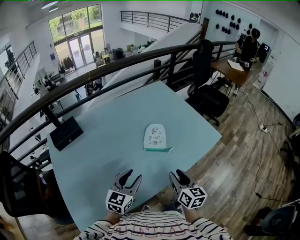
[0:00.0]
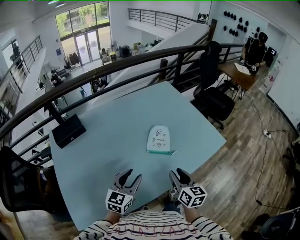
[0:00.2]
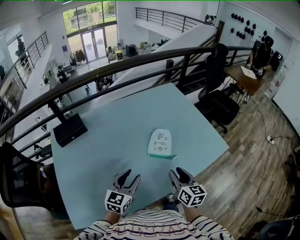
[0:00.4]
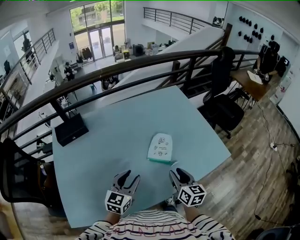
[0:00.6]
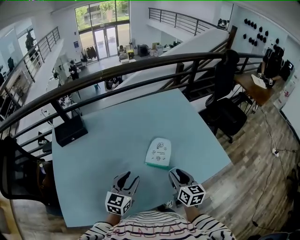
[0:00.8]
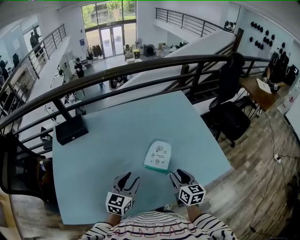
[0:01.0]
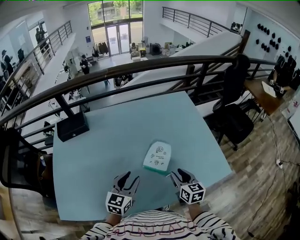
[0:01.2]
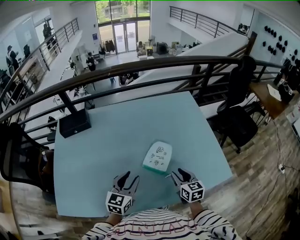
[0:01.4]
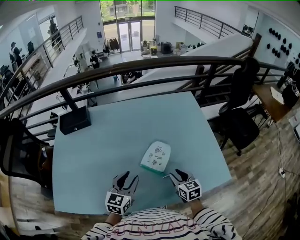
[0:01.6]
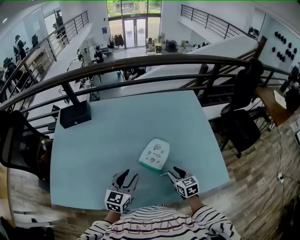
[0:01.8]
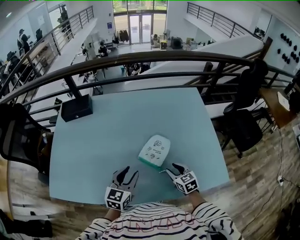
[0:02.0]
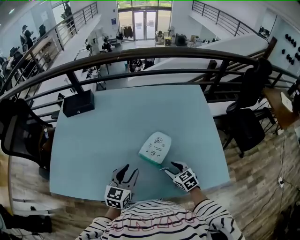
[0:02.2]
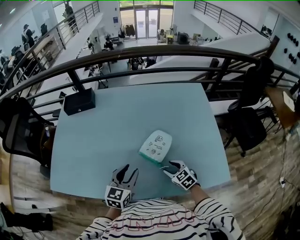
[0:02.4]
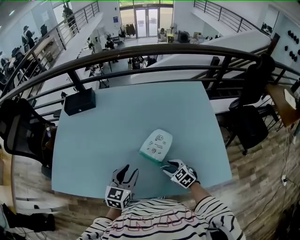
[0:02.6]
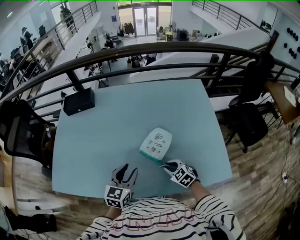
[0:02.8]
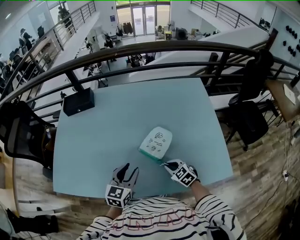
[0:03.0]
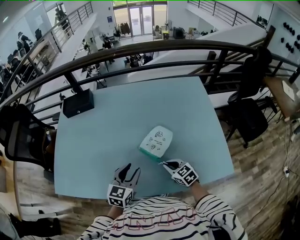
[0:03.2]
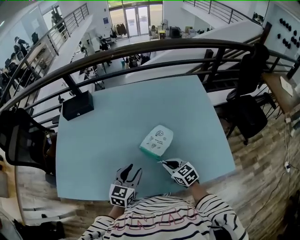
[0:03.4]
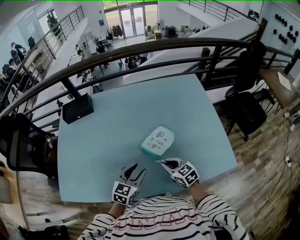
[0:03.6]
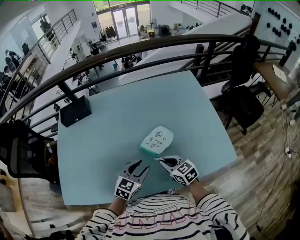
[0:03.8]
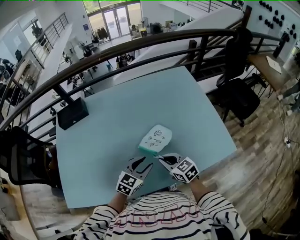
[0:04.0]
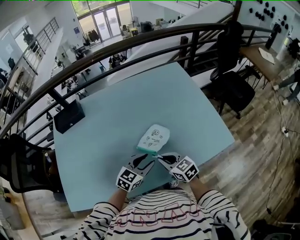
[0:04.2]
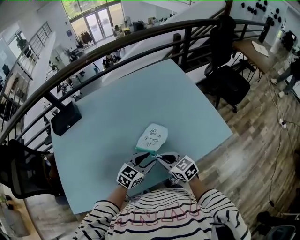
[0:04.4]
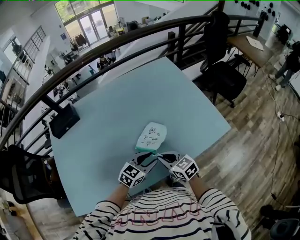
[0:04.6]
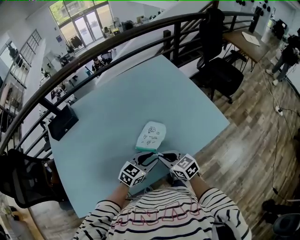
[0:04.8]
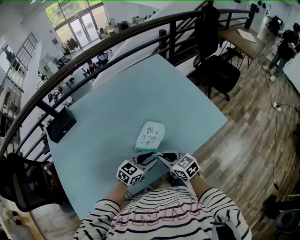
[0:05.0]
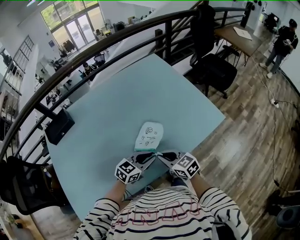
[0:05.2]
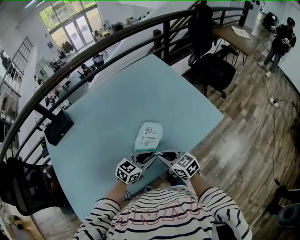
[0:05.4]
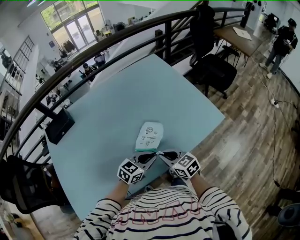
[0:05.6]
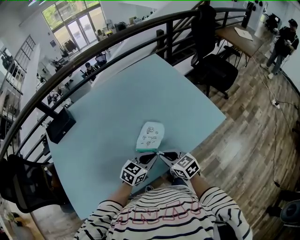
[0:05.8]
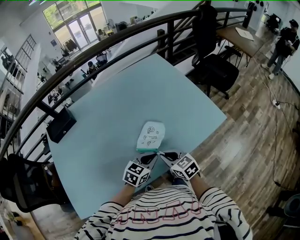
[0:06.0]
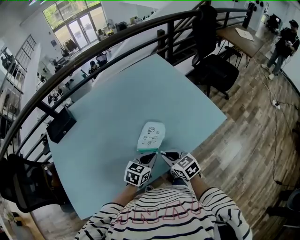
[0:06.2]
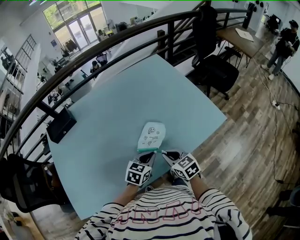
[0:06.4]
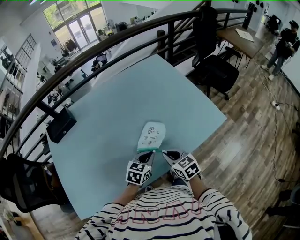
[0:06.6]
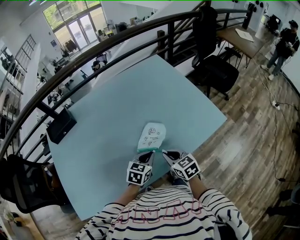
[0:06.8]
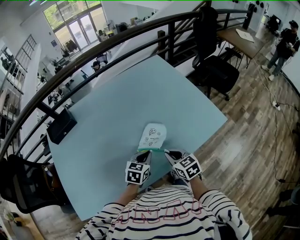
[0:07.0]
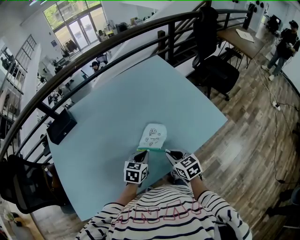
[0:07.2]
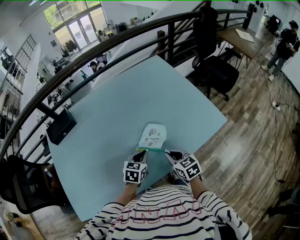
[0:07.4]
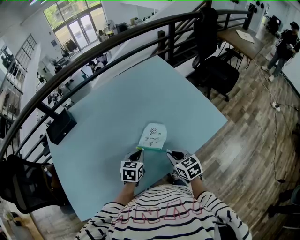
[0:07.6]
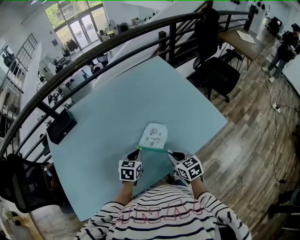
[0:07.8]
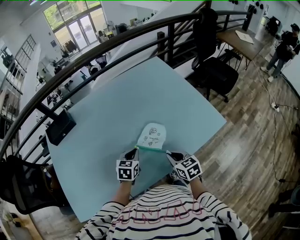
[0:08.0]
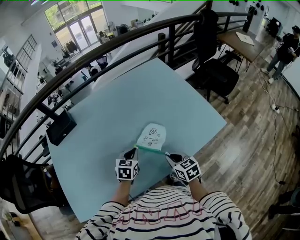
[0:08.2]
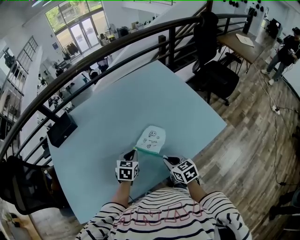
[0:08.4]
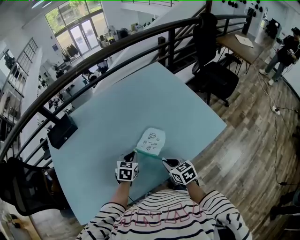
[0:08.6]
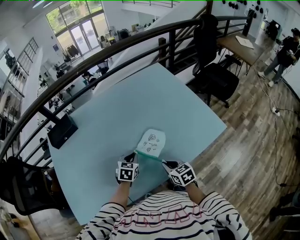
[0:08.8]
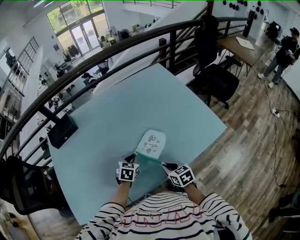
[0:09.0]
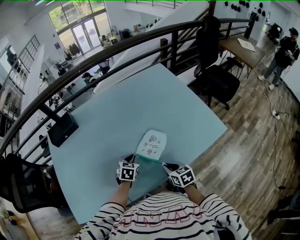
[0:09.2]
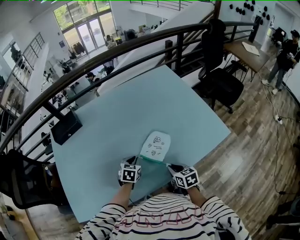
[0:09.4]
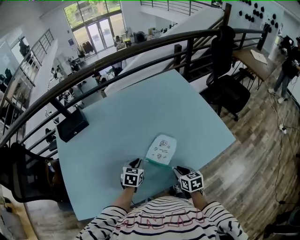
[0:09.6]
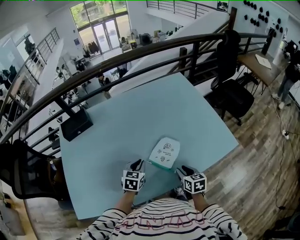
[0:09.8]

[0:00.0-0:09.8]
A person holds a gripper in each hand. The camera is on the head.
0:00.0 to 0:01.4: The right gripper heads forward, covering approximately 20 cm, and changes its angle by some 30 degrees; the left gripper goes about 15 cm forward and to the right, and rotates approximately 30 degrees.
0:01.4 to 0:02.8: The left gripper moves roughly 5 cm. Meanwhile the right gripper shifts approximately 10 cm downward, and swivels about 50 degrees.
0:02.8 to 0:04.2: The right gripper moves upward and to the left, roughly 10 cm, and changes its angle by roughly 30 degrees. The left gripper ends up roughly 5 cm from where it was, and rotates some 40 degrees.
0:04.2 to 0:05.6: The right gripper travels backward by roughly 5 cm. Meanwhile the left gripper moves some 5 cm, and closes up.
0:05.6 to 0:07.0: The left gripper changes place by some 5 cm, and rotates approximately 30 degrees.
0:07.0 to 0:08.4: The left gripper travels to the left and forward by about 10 cm.
0:08.4 to 0:09.8: The right gripper opens its fingers.

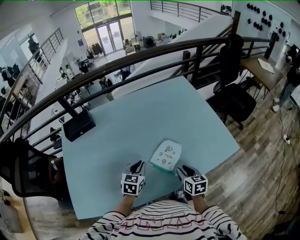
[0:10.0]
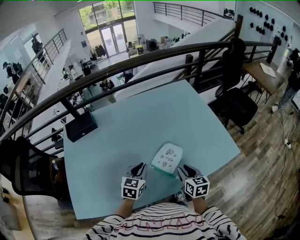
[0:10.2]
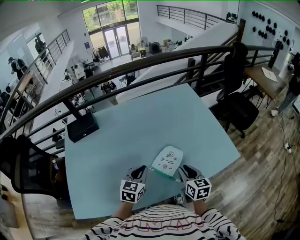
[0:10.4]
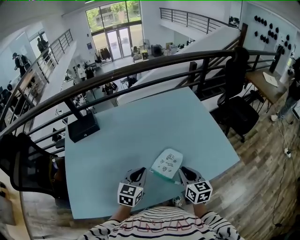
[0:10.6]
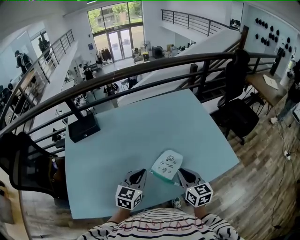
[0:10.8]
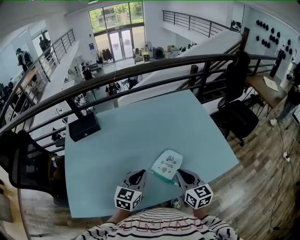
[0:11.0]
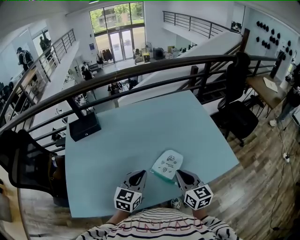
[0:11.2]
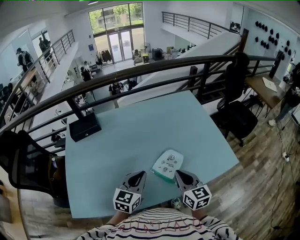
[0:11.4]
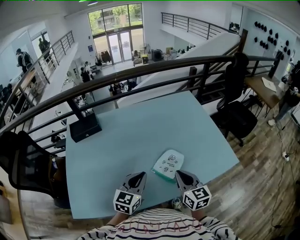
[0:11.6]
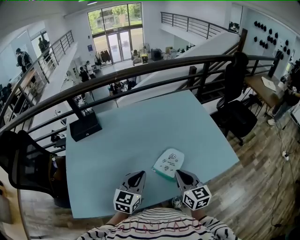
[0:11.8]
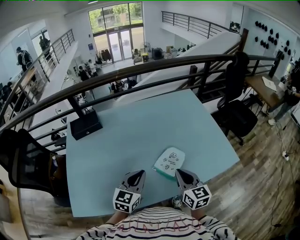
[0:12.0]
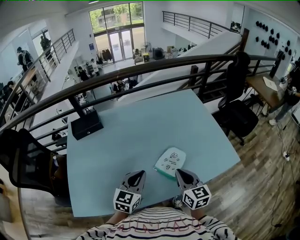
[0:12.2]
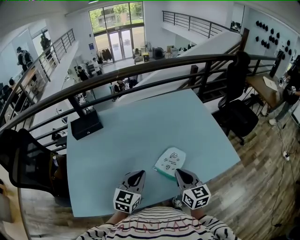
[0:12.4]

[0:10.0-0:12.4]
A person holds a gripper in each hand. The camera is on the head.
0:10.0 to 0:11.2: Both grippers move upward, roughly 10 cm. The right gripper rotates roughly 20 degrees, and closes.
0:11.2 to 0:12.4: The grippers make only small movements.

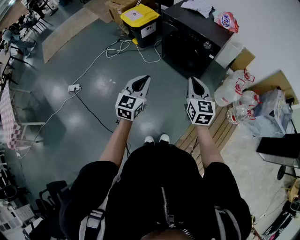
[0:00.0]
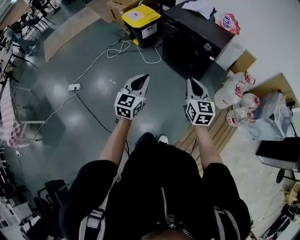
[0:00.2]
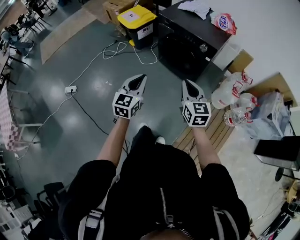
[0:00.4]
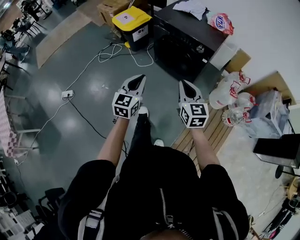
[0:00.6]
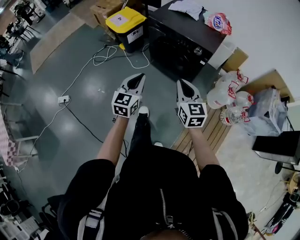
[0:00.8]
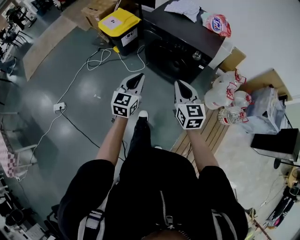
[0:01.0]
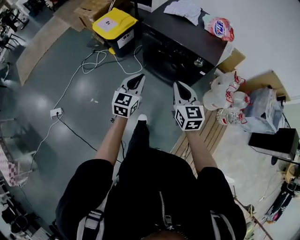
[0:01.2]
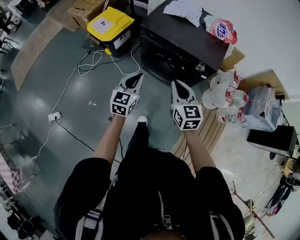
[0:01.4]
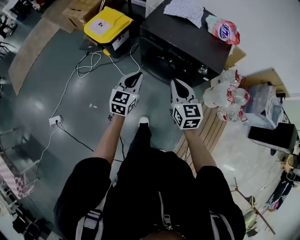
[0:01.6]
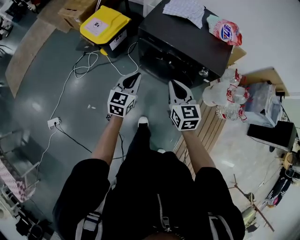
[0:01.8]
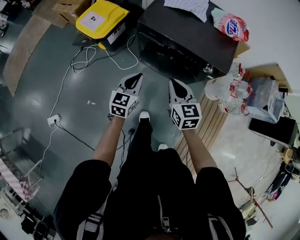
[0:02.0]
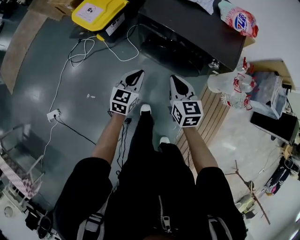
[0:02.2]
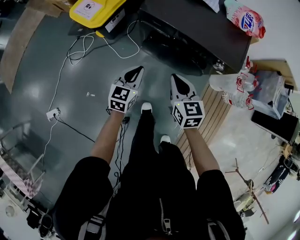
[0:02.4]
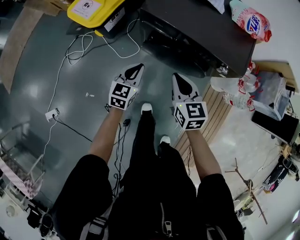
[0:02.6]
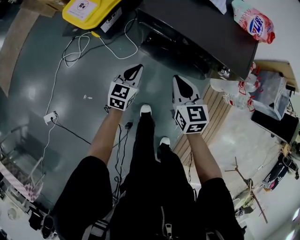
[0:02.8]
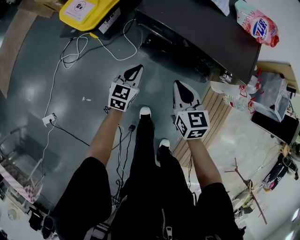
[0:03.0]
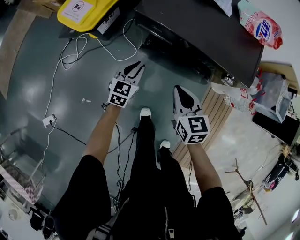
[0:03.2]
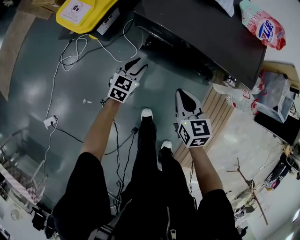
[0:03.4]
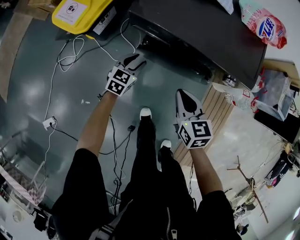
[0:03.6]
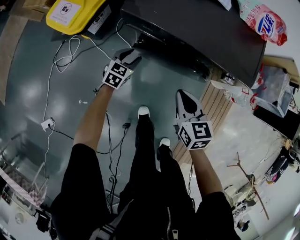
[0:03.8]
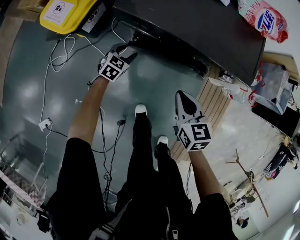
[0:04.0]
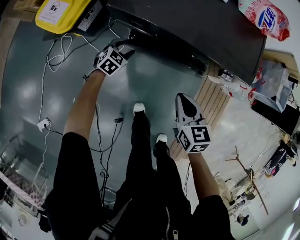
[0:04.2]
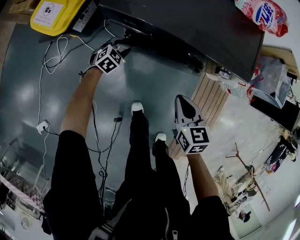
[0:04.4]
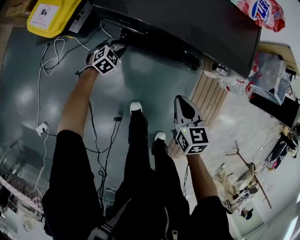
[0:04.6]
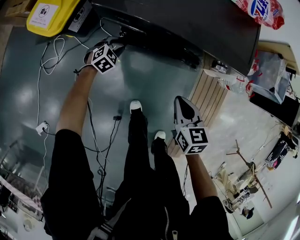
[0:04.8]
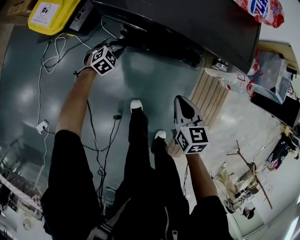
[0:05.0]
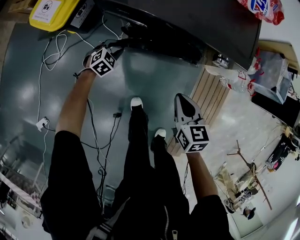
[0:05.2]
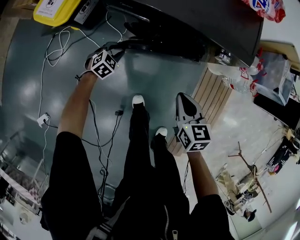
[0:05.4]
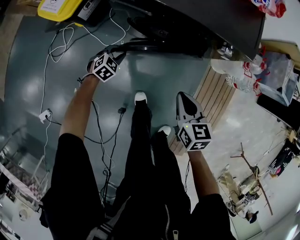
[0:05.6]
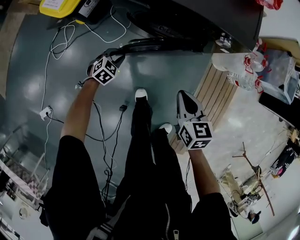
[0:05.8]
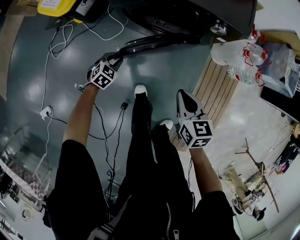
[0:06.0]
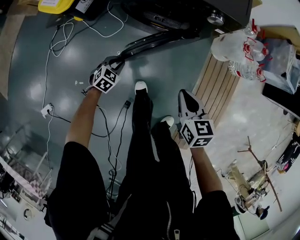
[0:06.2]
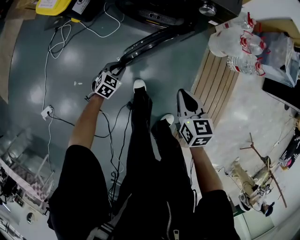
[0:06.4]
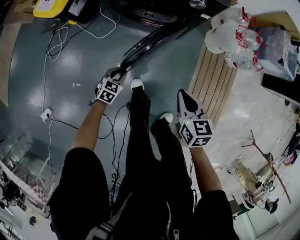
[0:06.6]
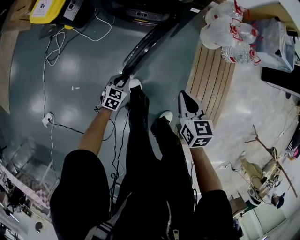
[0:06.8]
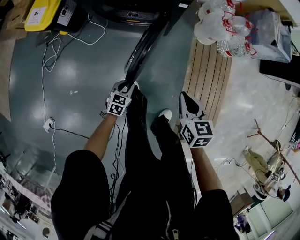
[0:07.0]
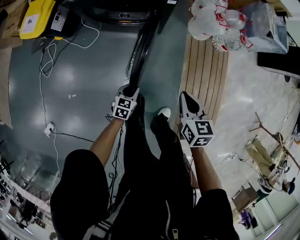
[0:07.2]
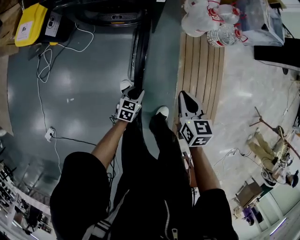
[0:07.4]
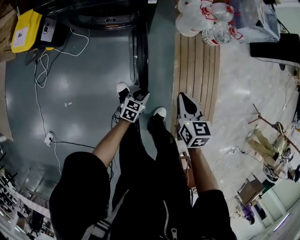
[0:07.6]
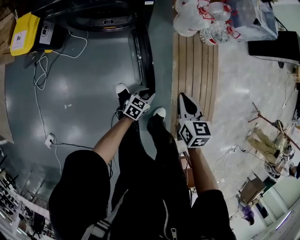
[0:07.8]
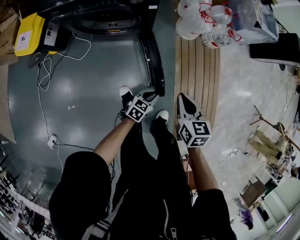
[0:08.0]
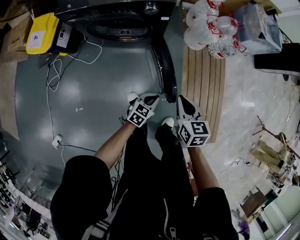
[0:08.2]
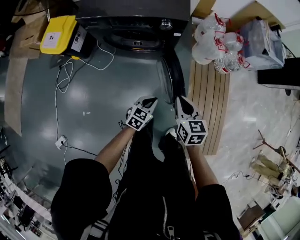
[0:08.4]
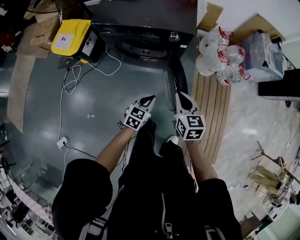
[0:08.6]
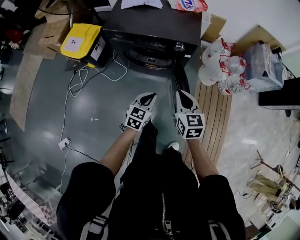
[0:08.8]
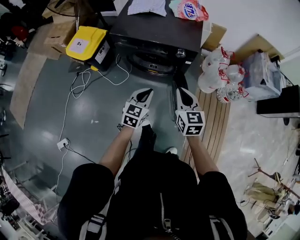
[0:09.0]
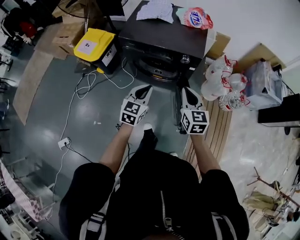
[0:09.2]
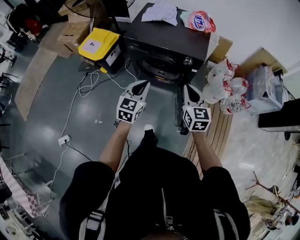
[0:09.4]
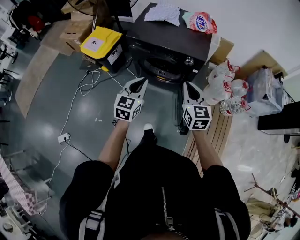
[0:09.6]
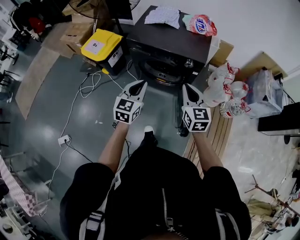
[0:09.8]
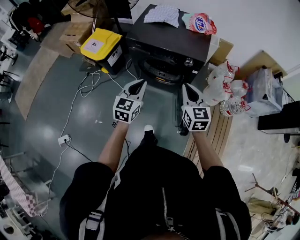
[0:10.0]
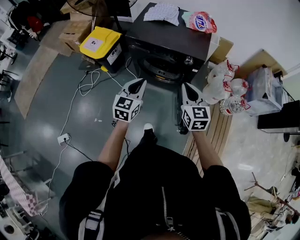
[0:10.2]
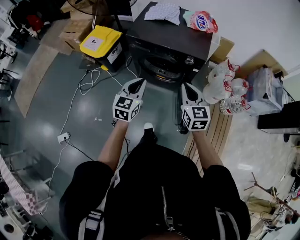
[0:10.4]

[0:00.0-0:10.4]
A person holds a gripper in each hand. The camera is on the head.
0:00.0 to 0:01.4: Both grippers travel together forward, about 35 cm.
0:01.4 to 0:03.0: Both grippers move downward and forward, about 25 cm.
0:03.0 to 0:04.4: The right gripper heads to the right and downward, covering approximately 10 cm; the left gripper travels downward and forward by about 20 cm, swivels approximately 40 degrees, and opens its fingers.
0:04.4 to 0:06.0: The right gripper travels backward and to the right by about 15 cm, while the left gripper travels backward by some 20 cm, and closes its fingers.
0:06.0 to 0:07.4: The right gripper shifts some 25 cm to the right and backward; the left gripper moves to the right and backward, roughly 40 cm, and swivels roughly 20 degrees.
0:07.4 to 0:09.0: The left gripper is displaced upward by about 35 cm, rotates roughly 30 degrees, and closes up. The right gripper heads upward, covering some 20 cm, and swivels roughly 30 degrees.
0:09.0 to 0:10.4: The left gripper heads upward and to the left, covering approximately 15 cm, while the right gripper moves upward, some 5 cm.

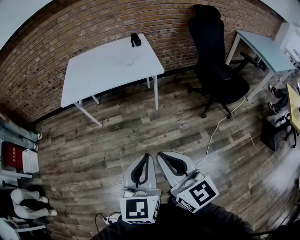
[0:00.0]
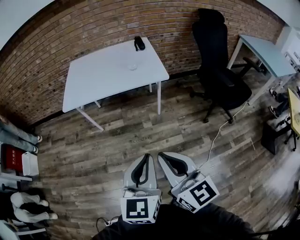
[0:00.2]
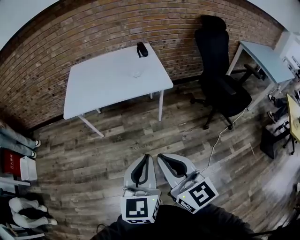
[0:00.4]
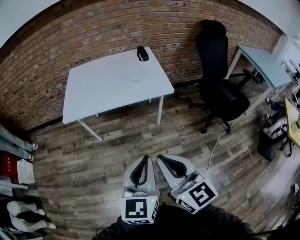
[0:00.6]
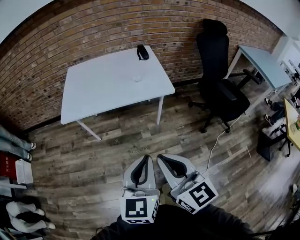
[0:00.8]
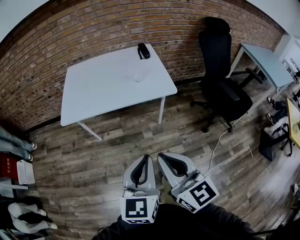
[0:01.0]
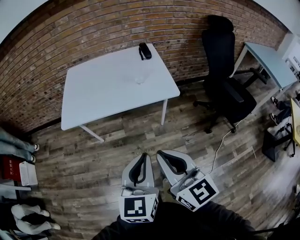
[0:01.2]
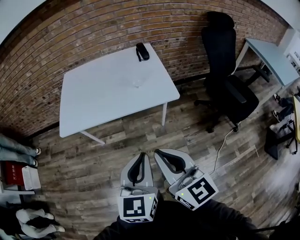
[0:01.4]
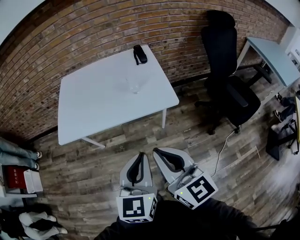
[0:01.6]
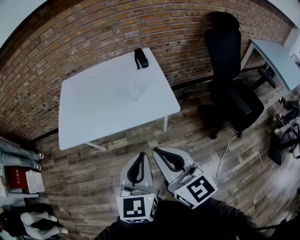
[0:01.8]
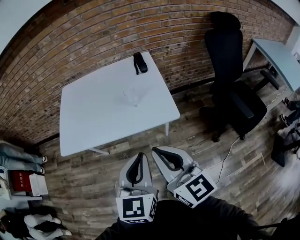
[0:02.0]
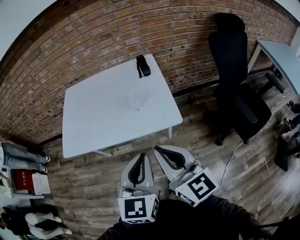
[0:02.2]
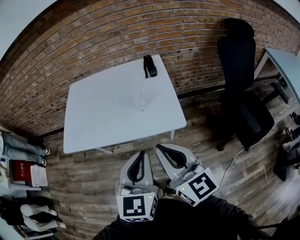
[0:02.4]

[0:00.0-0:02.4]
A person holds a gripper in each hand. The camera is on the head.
0:00.0 to 0:01.2: The grippers both shift forward by some 20 cm.
0:01.2 to 0:02.4: Both grippers move forward and to the right, approximately 20 cm.
